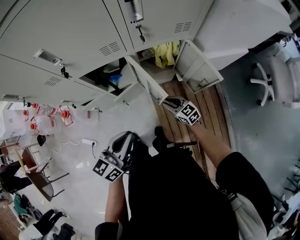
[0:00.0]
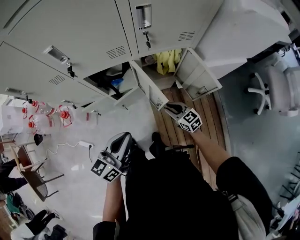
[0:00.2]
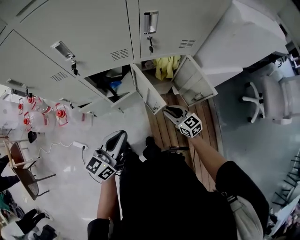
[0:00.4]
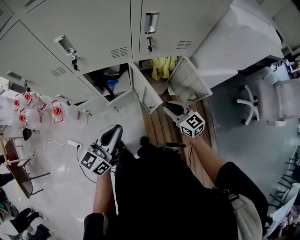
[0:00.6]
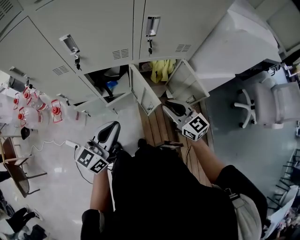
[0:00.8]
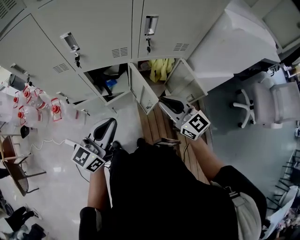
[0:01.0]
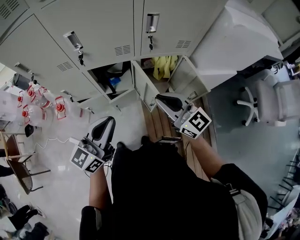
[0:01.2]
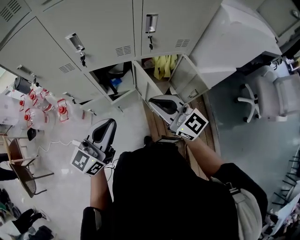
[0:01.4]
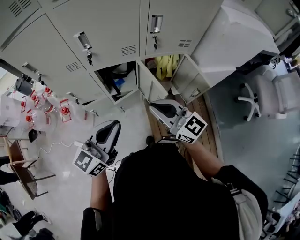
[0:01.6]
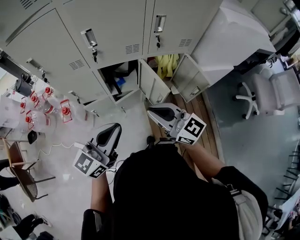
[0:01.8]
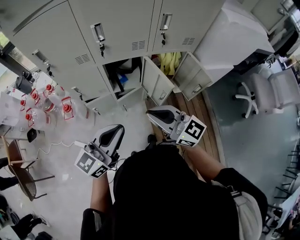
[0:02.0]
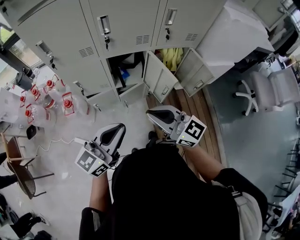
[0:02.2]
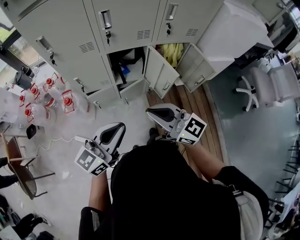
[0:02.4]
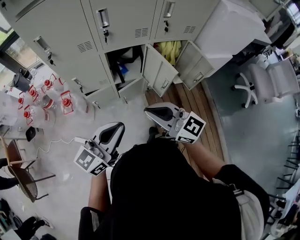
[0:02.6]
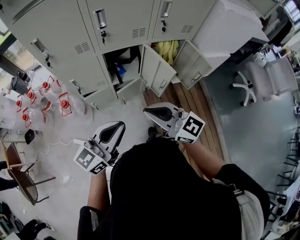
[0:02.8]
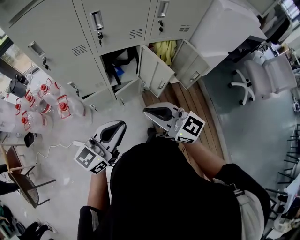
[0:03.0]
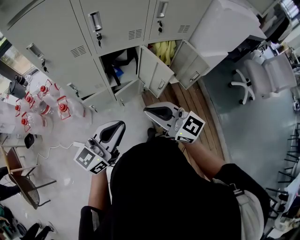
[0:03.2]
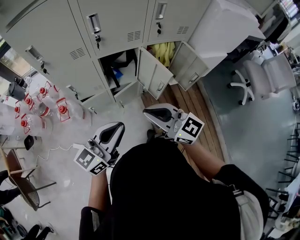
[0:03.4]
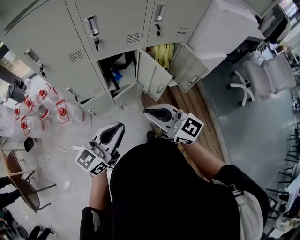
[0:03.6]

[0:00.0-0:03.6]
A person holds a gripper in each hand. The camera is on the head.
0.0 to 1.8 s: The right gripper travels upward and to the left by some 40 cm, and tips its fingers upward by about 30 degrees. Meanwhile the left gripper shifts roughly 20 cm upward, to the left and backward.
1.8 to 3.6 s: The left gripper moves downward, about 5 cm, while the right gripper goes roughly 10 cm to the left and backward.

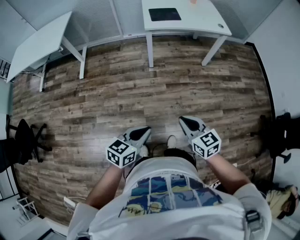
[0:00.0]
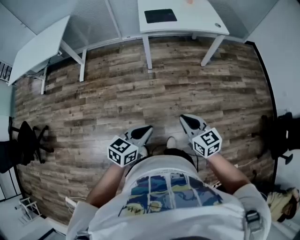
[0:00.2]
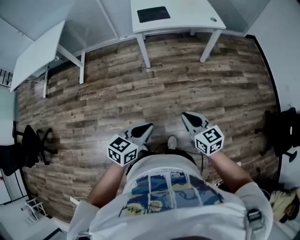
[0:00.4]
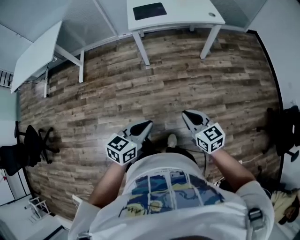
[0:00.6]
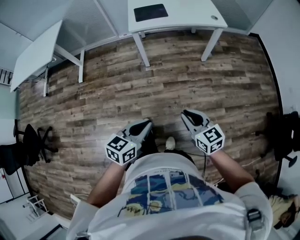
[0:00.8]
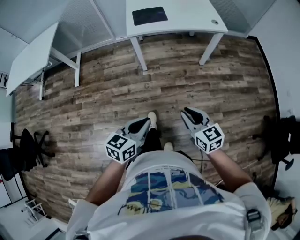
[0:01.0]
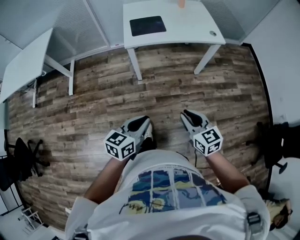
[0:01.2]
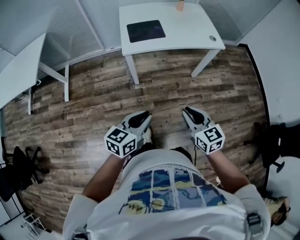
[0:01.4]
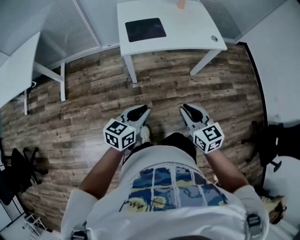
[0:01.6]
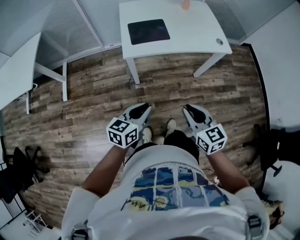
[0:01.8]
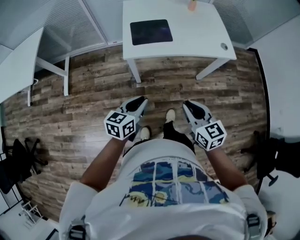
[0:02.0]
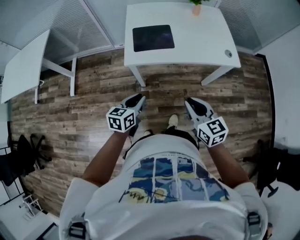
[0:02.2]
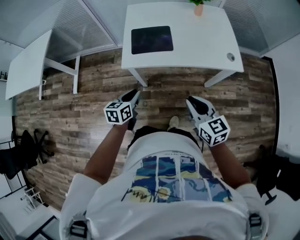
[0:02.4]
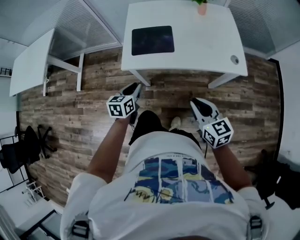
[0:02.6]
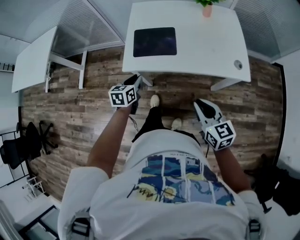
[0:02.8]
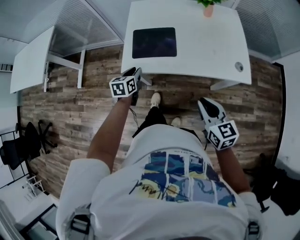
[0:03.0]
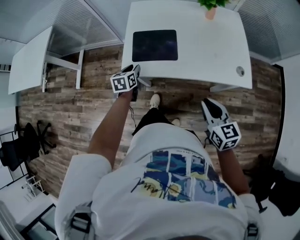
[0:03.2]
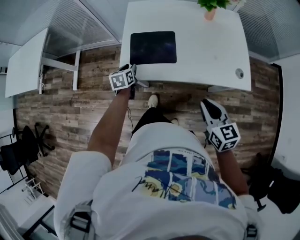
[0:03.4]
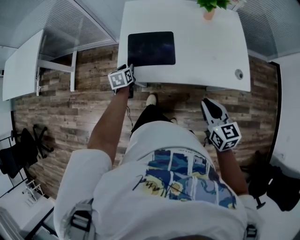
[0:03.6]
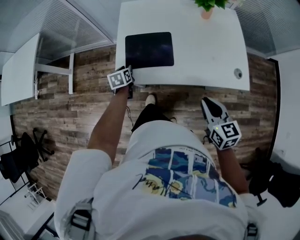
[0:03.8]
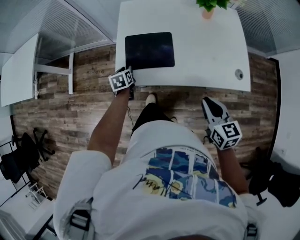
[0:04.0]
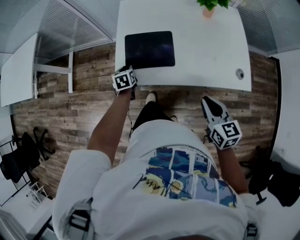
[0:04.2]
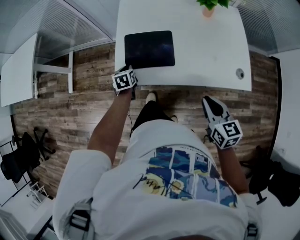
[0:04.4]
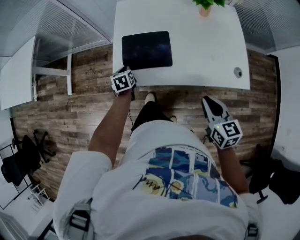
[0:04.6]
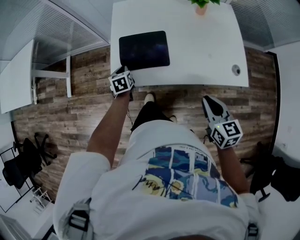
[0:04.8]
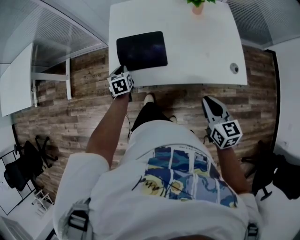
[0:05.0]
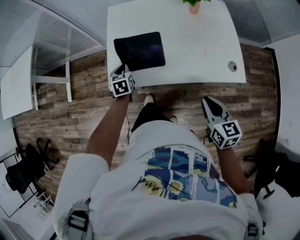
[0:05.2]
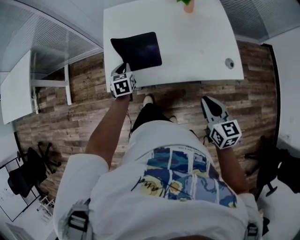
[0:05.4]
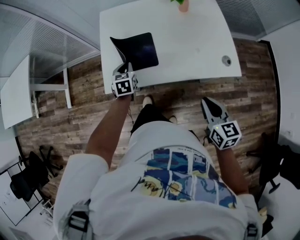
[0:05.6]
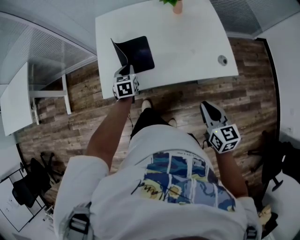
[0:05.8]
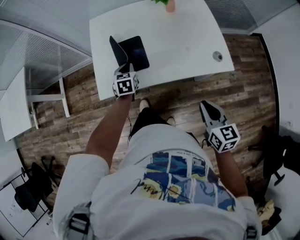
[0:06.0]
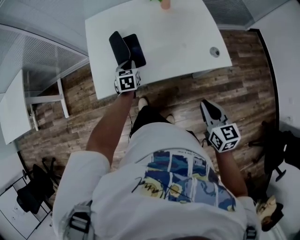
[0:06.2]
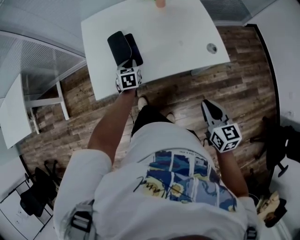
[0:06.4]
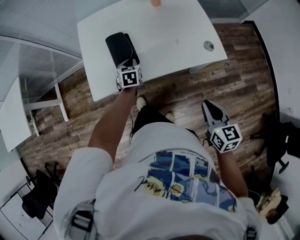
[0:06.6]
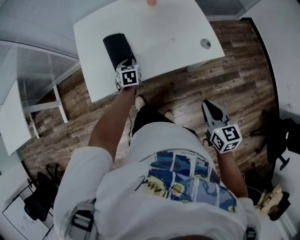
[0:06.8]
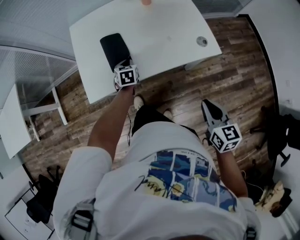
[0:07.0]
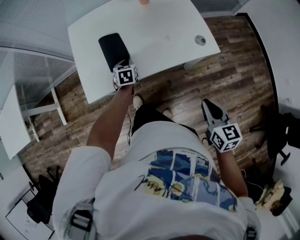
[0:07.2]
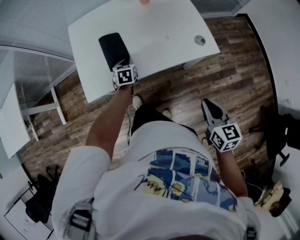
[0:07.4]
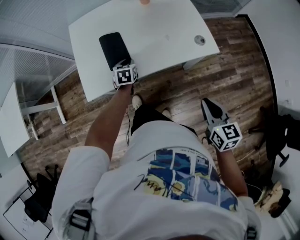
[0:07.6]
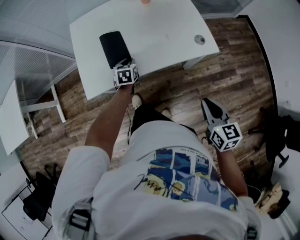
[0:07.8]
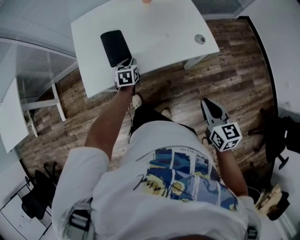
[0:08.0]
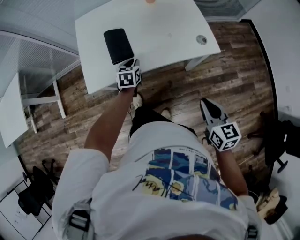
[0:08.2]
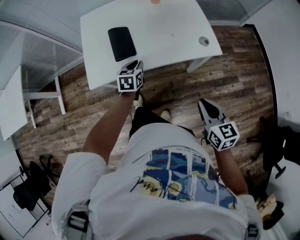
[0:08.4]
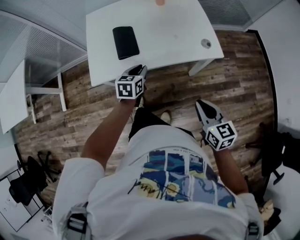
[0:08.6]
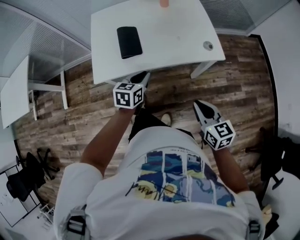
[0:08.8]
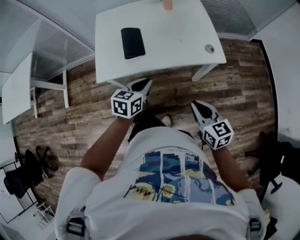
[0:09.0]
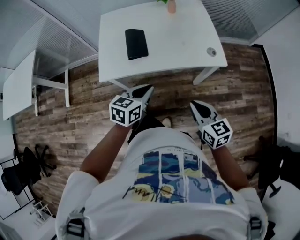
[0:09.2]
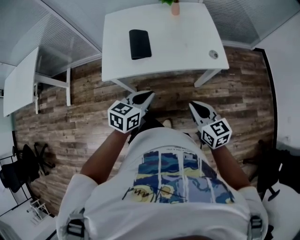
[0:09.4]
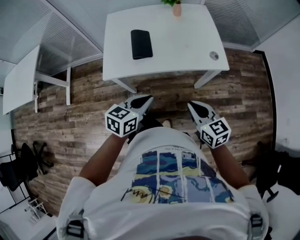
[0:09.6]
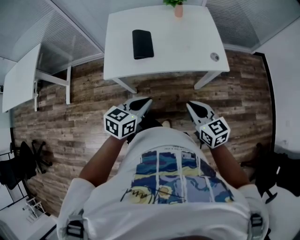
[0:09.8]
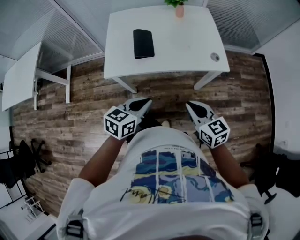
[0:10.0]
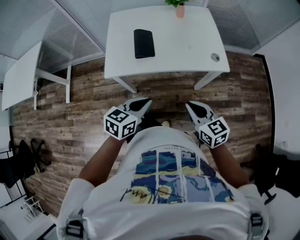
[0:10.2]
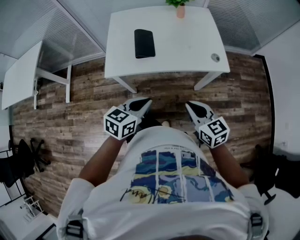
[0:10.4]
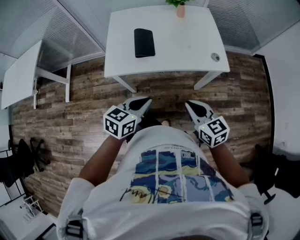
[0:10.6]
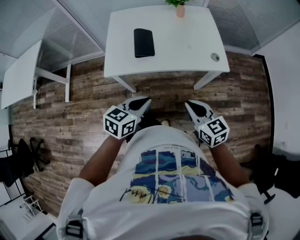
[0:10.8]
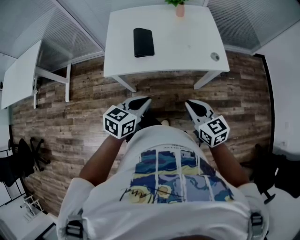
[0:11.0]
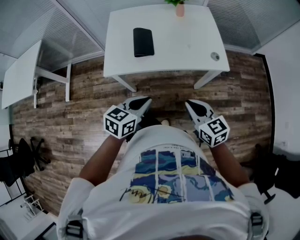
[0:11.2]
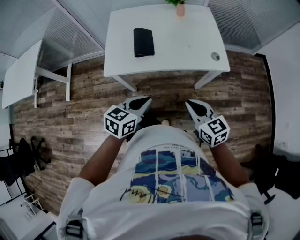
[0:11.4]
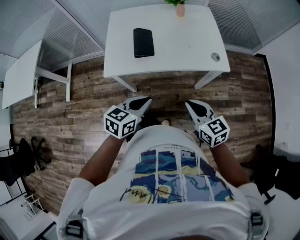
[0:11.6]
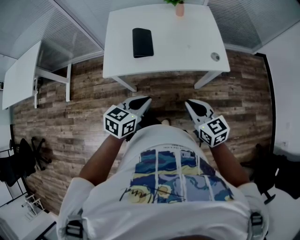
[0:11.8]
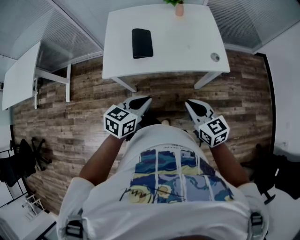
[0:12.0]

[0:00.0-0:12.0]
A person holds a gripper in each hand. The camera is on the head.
0.0 to 1.6 s: The grippers both shift forward by roughly 40 cm.
1.6 to 3.0 s: The left gripper heads forward, covering approximately 40 cm, and rotates approximately 40 degrees; the right gripper shifts approximately 35 cm forward and to the right.
3.0 to 4.4 s: The right gripper shifts roughly 10 cm forward. The left gripper heads forward and downward, covering some 15 cm.
4.4 to 6.0 s: The left gripper heads to the right, covering some 15 cm, and changes its angle by some 20 degrees; the right gripper goes about 10 cm backward and to the right.
6.0 to 7.6 s: The left gripper moves to the right, about 10 cm; the right gripper shifts roughly 10 cm to the right and backward.
7.6 to 9.0 s: The right gripper heads to the left, covering roughly 5 cm. The left gripper is displaced backward and upward by roughly 25 cm, and changes its angle by roughly 20 degrees.
9.0 to 10.4 s: The right gripper travels to the left by about 5 cm; the left gripper is displaced backward and upward by some 10 cm.
10.4 to 12.0 s: The grippers move only a little.

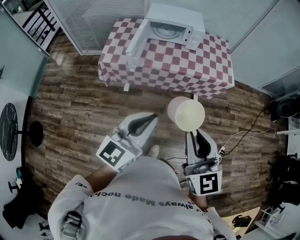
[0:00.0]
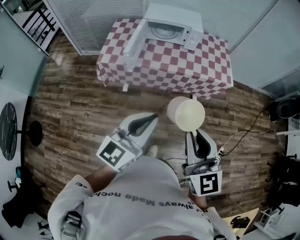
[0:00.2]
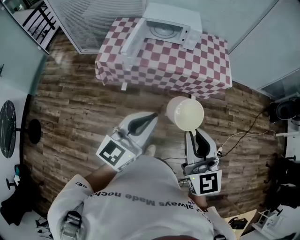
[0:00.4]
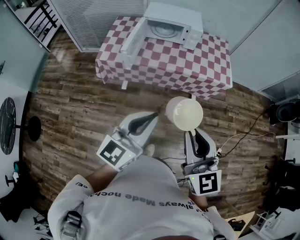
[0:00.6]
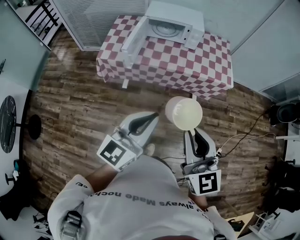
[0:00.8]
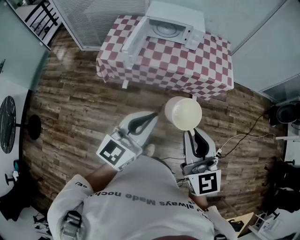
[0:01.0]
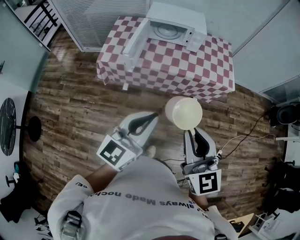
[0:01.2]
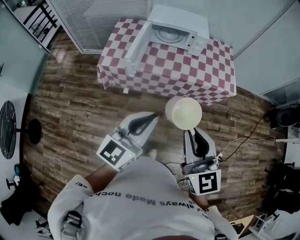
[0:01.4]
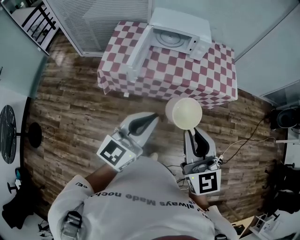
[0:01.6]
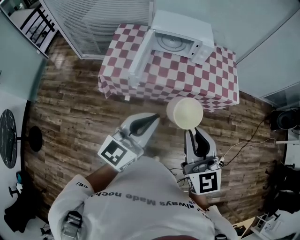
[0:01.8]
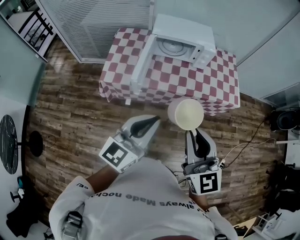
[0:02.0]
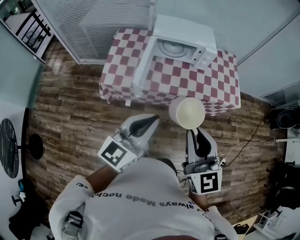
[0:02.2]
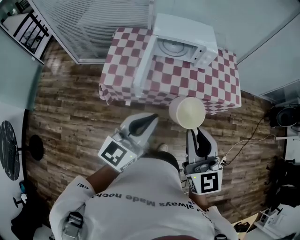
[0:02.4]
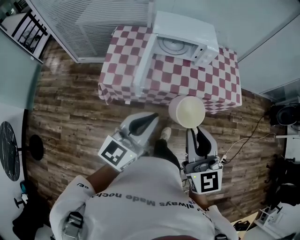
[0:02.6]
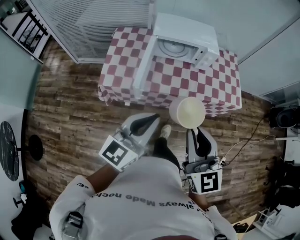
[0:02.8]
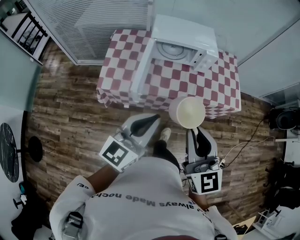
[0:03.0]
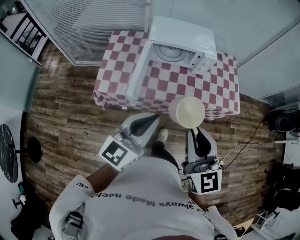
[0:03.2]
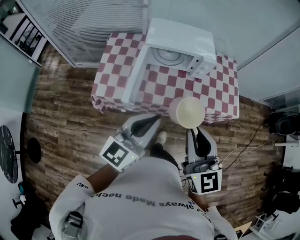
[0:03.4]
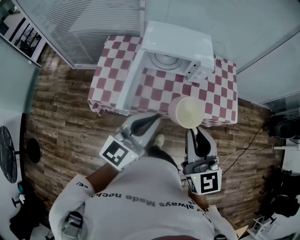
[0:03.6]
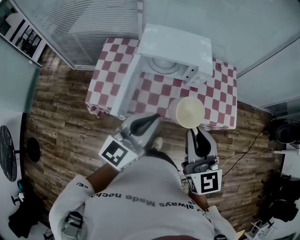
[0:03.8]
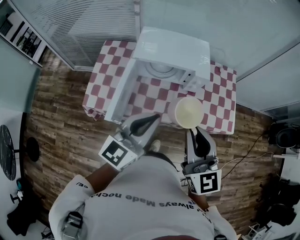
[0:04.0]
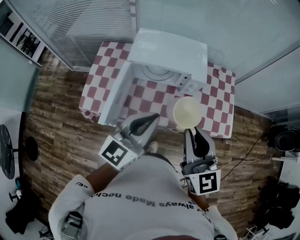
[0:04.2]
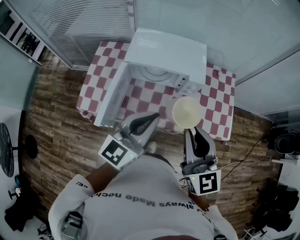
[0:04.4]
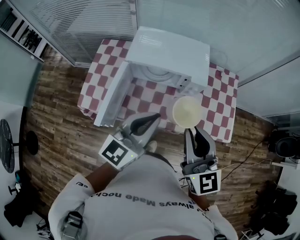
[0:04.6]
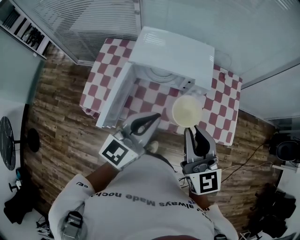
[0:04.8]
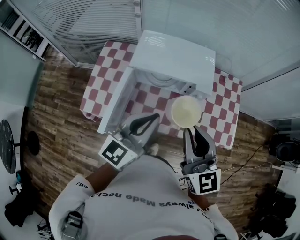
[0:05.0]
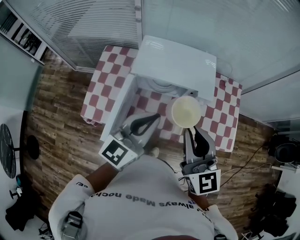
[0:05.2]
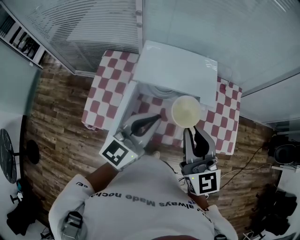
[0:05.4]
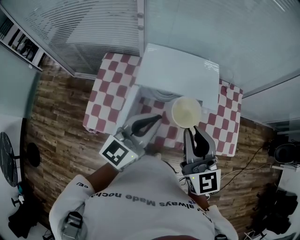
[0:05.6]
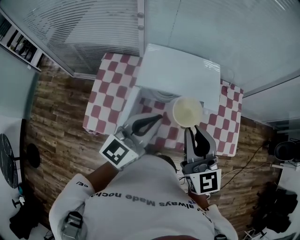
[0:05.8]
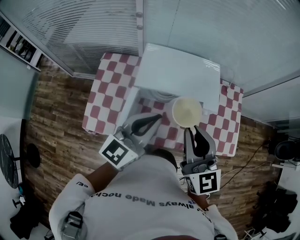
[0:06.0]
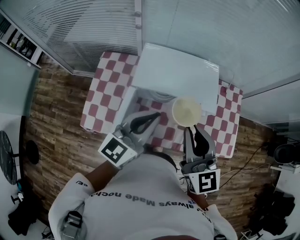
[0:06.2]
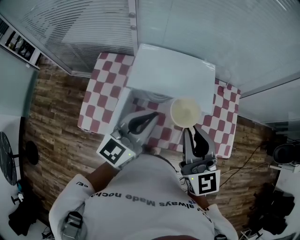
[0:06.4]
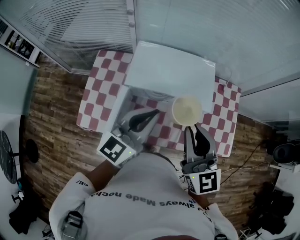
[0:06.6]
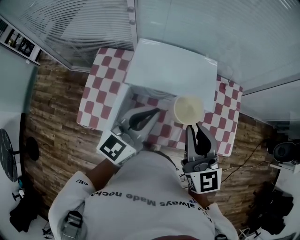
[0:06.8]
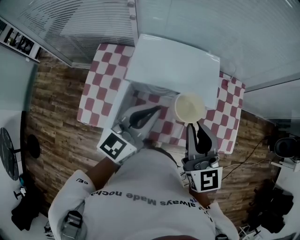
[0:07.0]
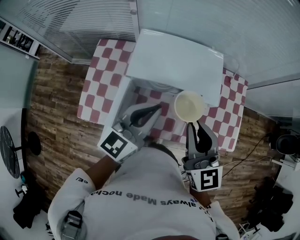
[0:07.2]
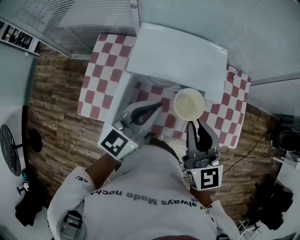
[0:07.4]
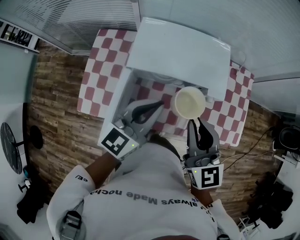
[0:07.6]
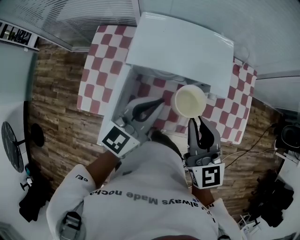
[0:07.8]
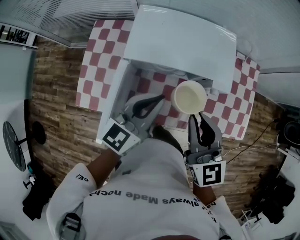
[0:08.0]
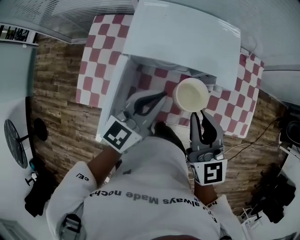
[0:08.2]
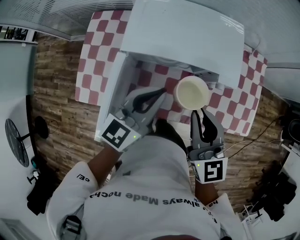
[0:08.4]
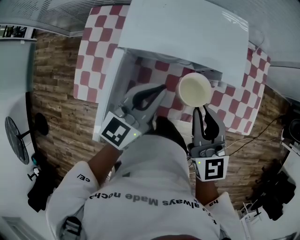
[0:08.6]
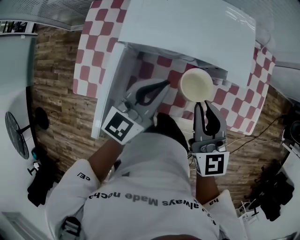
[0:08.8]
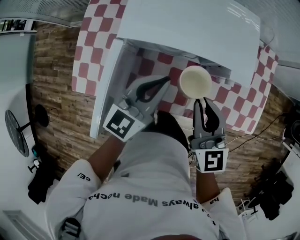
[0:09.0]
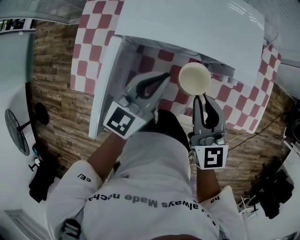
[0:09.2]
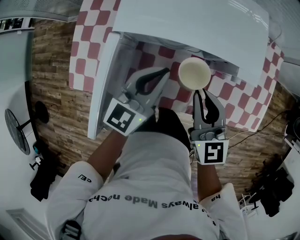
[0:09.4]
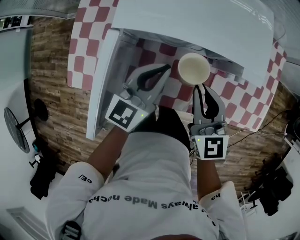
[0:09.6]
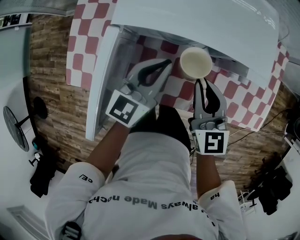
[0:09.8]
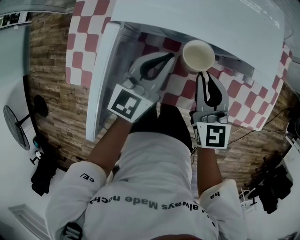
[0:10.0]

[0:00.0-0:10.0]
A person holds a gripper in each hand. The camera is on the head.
0.0 to 1.4 s: Both grippers move forward, roughly 10 cm.
1.4 to 2.8 s: Both grippers travel together forward and to the left, some 20 cm.
2.8 to 4.2 s: The grippers both shift forward and to the right by about 30 cm.
4.2 to 5.8 s: Both grippers move forward and to the left, roughly 20 cm.
5.8 to 7.2 s: The right gripper moves approximately 10 cm. Meanwhile the left gripper shifts by about 5 cm.
7.2 to 8.6 s: The grippers both shift downward by some 10 cm.
8.6 to 10.0 s: The two grippers go roughly 15 cm downward.
